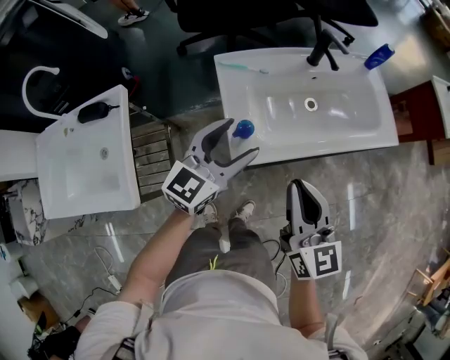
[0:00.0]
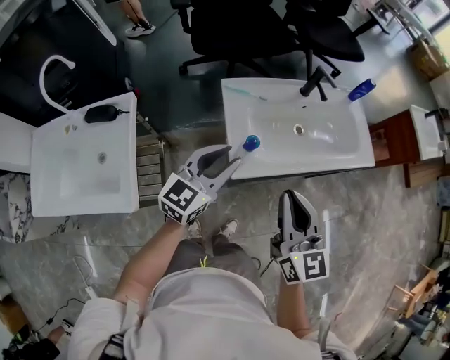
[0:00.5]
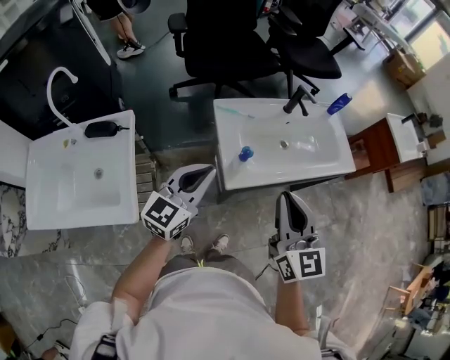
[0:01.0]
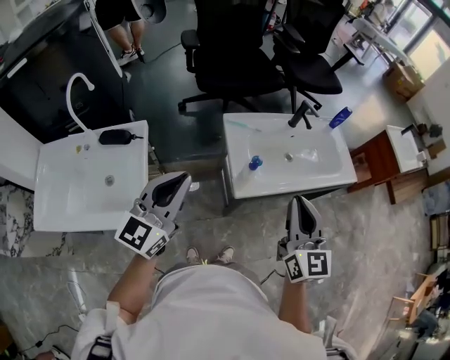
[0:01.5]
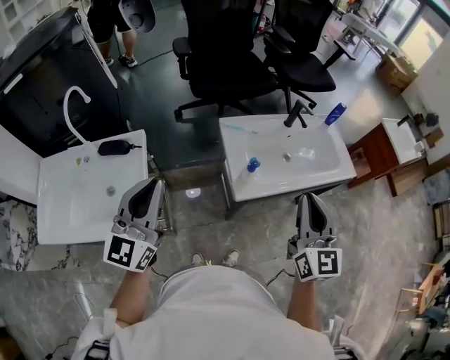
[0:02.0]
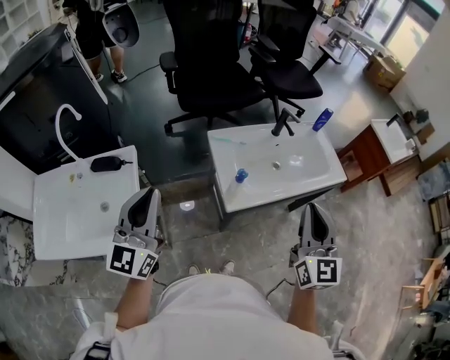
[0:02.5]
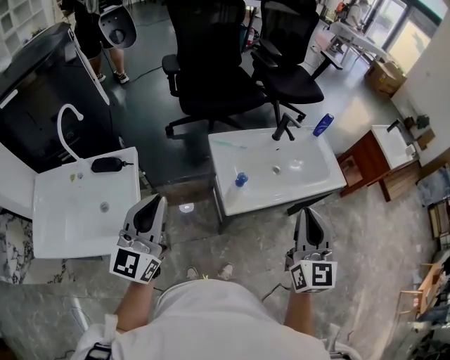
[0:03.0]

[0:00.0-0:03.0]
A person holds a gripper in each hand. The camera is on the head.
0:00.0 to 0:01.5: The right gripper shifts about 15 cm upward and backward. The left gripper goes roughly 30 cm upward, to the left and backward, and closes.
0:01.5 to 0:03.0: The right gripper travels to the right by some 5 cm.

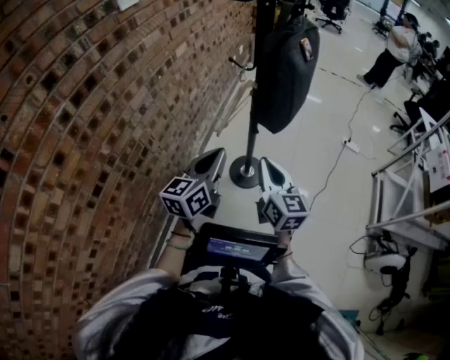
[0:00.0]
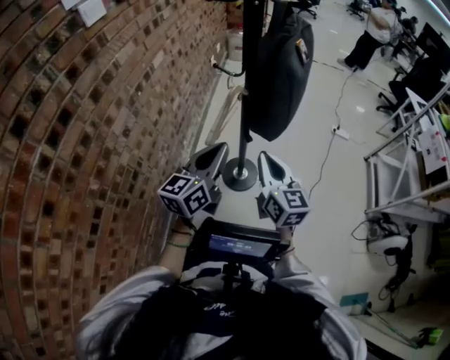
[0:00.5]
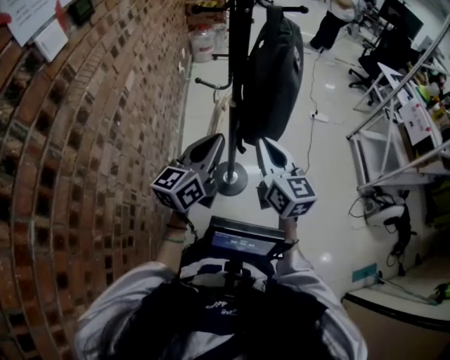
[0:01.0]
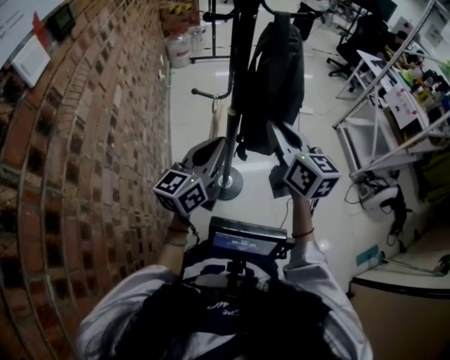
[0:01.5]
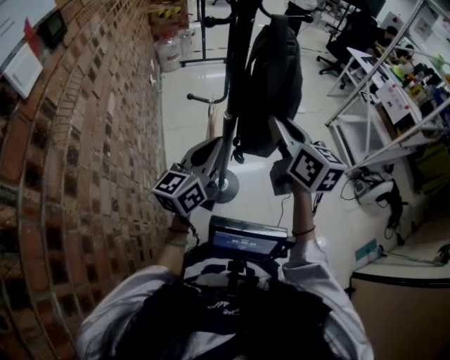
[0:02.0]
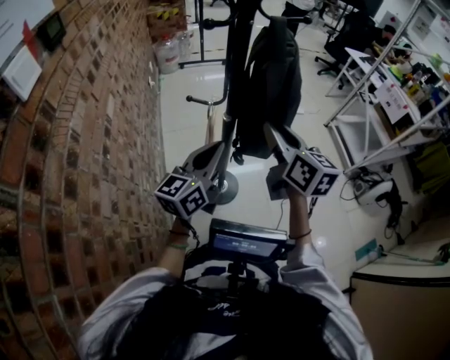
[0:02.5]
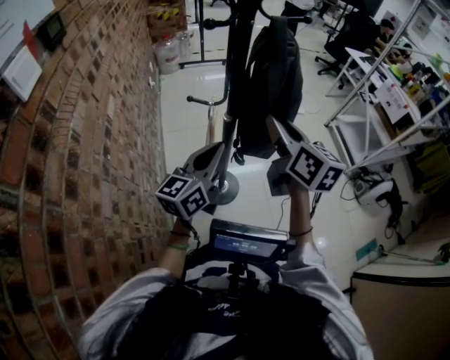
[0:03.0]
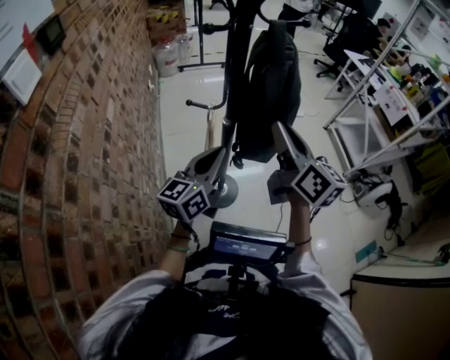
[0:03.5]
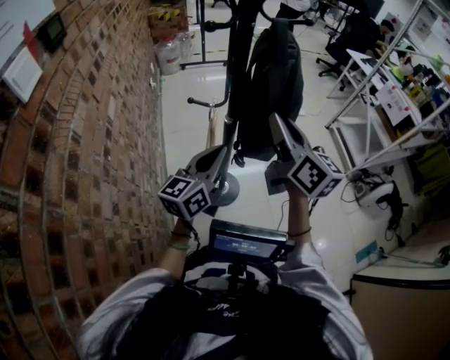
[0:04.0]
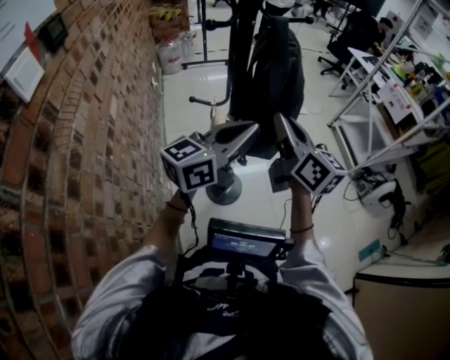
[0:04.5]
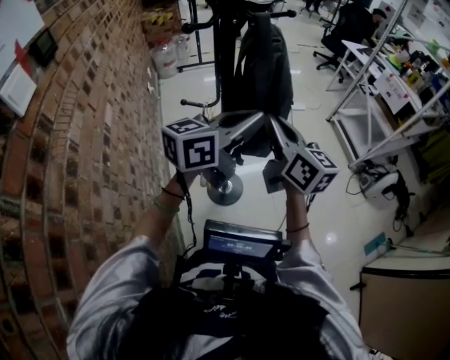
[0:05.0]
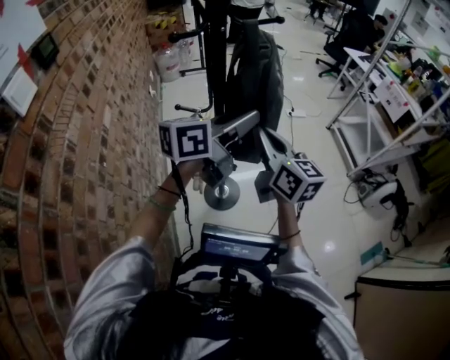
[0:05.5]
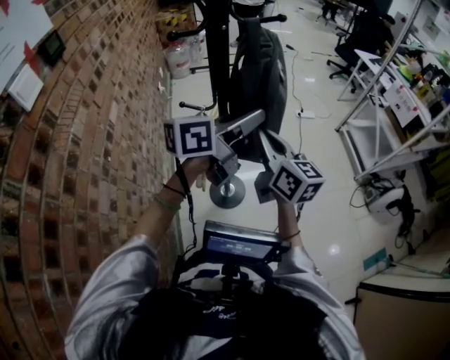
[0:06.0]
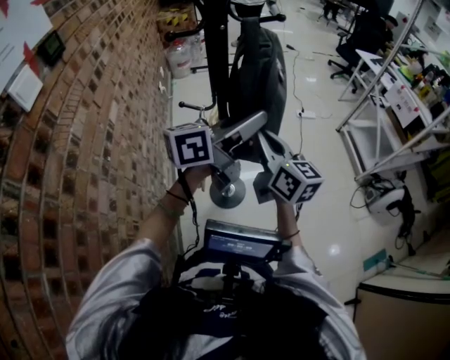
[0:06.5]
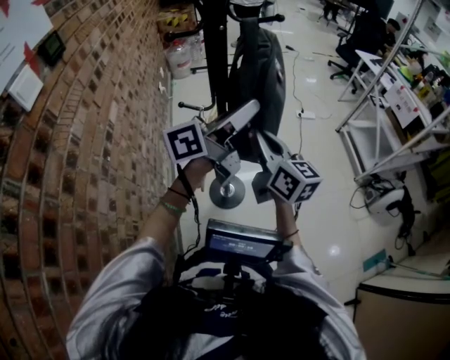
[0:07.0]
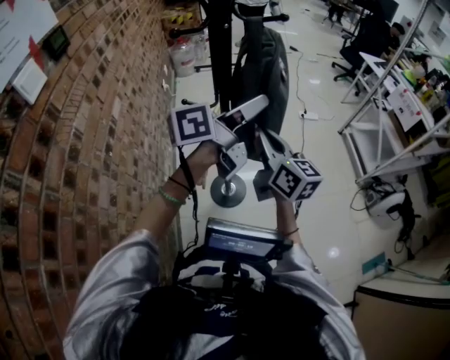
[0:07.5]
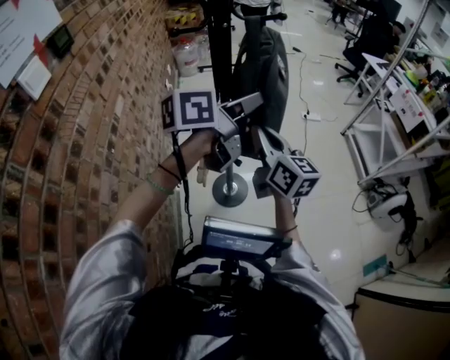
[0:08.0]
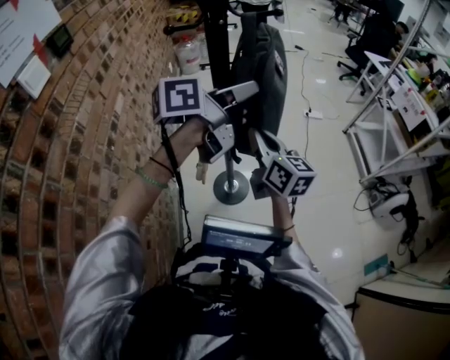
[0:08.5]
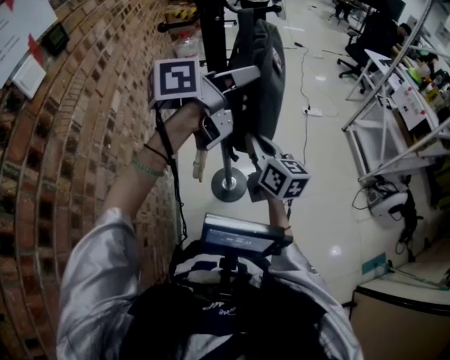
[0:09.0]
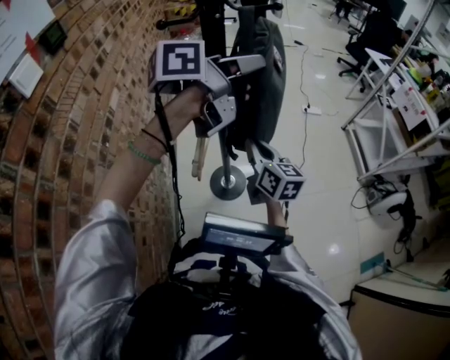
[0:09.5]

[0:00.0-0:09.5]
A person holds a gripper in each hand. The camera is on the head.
0:00.0 to 0:02.0: The right gripper ends up approximately 25 cm from where it was, and rotates roughly 30 degrees; the left gripper shifts by some 25 cm, and turns by about 40 degrees.
0:02.0 to 0:04.0: There are only small adjustments of the grippers.
0:04.0 to 0:05.5: The left gripper is displaced upward, to the right and forward by some 15 cm, and swivels some 30 degrees.
0:05.5 to 0:07.5: The left gripper turns by about 20 degrees.
0:07.5 to 0:09.5: The right gripper goes approximately 10 cm downward. The left gripper travels upward by some 5 cm.

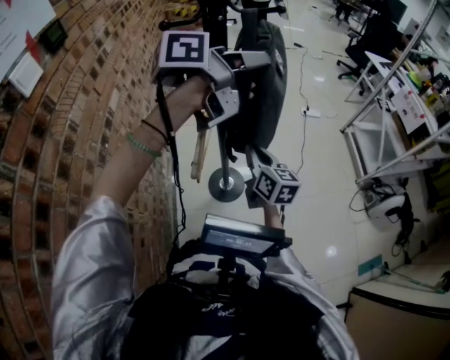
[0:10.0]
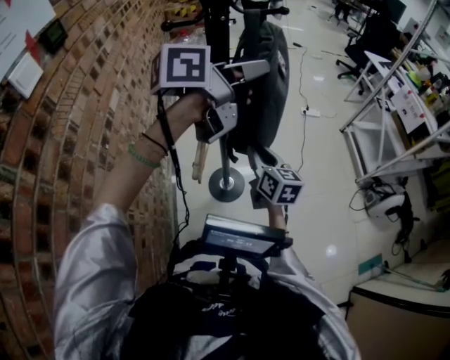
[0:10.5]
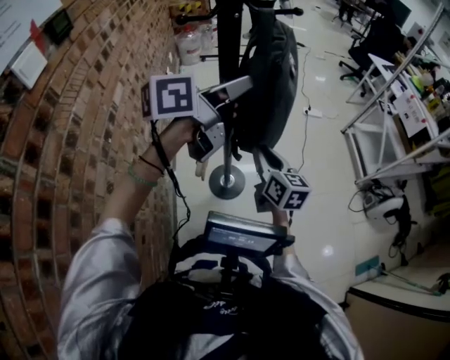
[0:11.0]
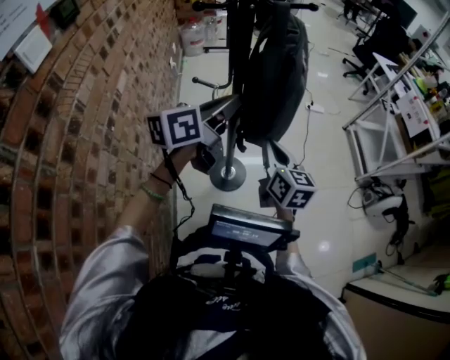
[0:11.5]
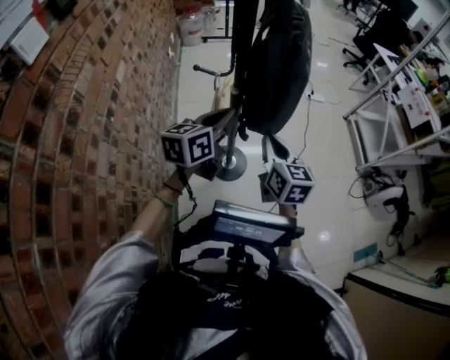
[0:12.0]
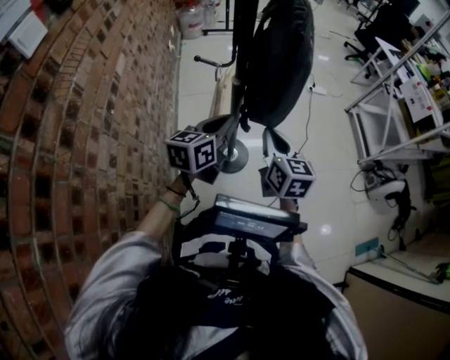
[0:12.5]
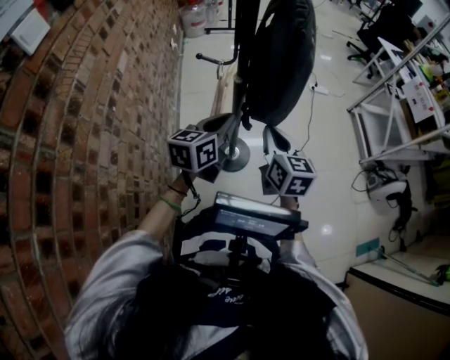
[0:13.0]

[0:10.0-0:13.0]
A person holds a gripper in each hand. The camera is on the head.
0:10.0 to 0:11.5: The left gripper goes some 15 cm downward, to the left and backward, and rotates some 20 degrees; the right gripper opens and closes again.
0:11.5 to 0:13.0: The left gripper moves downward, approximately 15 cm.

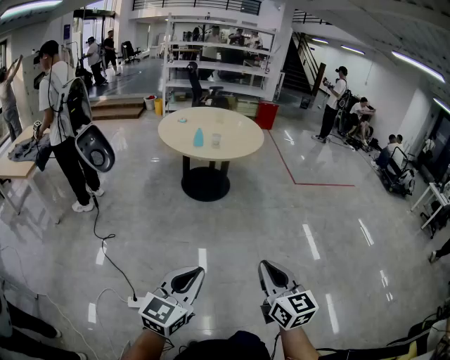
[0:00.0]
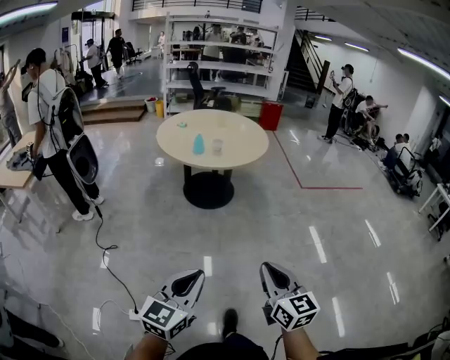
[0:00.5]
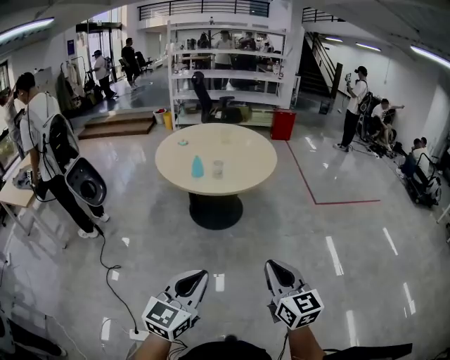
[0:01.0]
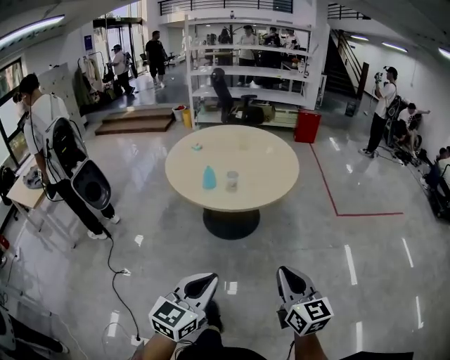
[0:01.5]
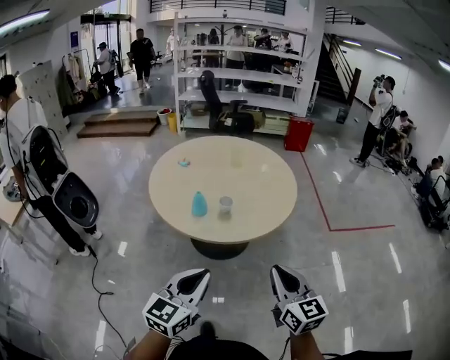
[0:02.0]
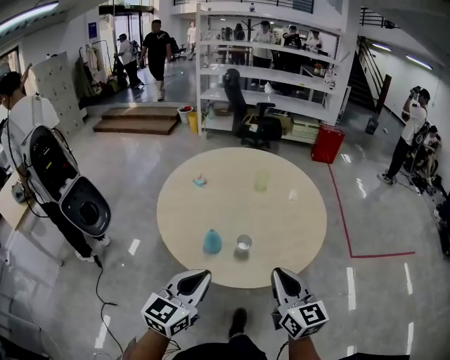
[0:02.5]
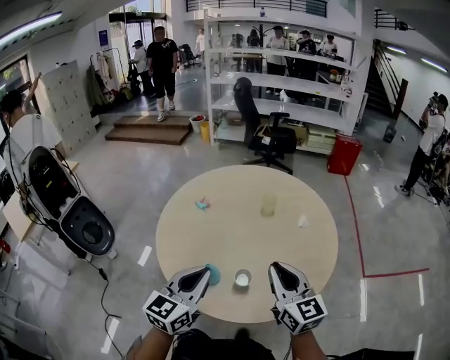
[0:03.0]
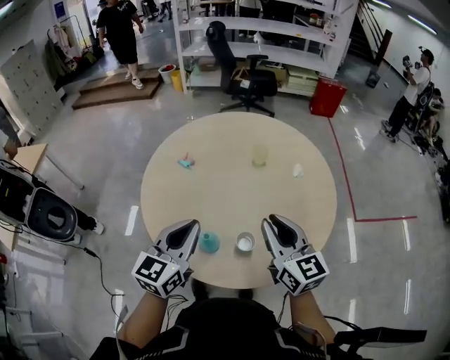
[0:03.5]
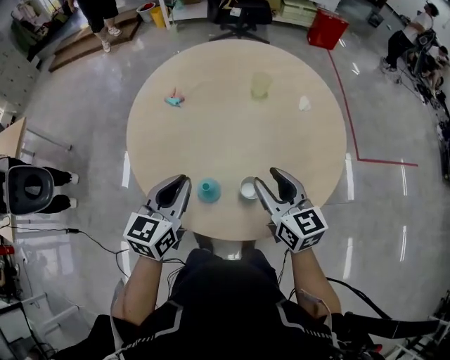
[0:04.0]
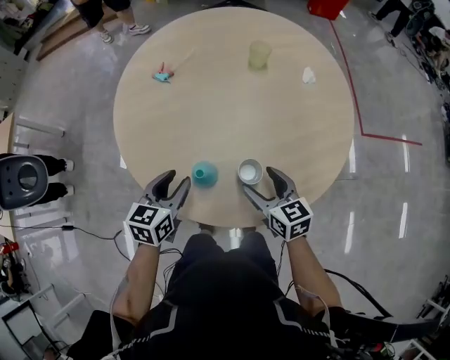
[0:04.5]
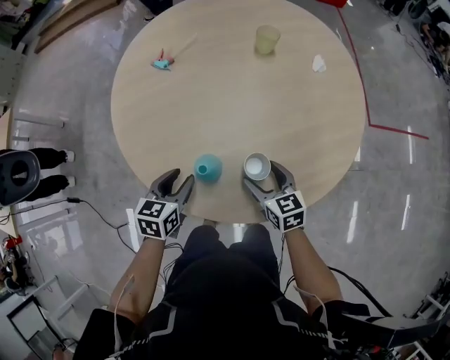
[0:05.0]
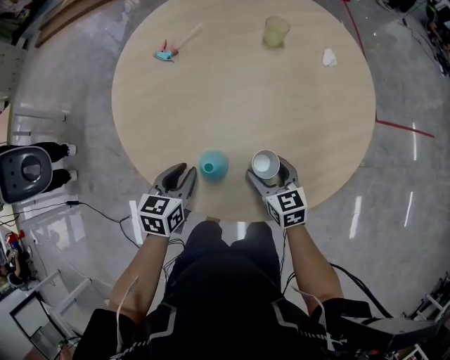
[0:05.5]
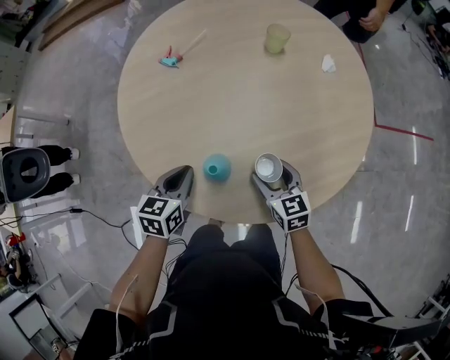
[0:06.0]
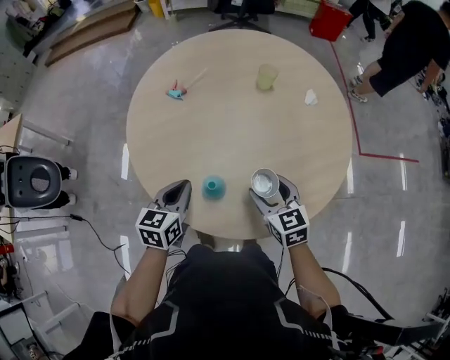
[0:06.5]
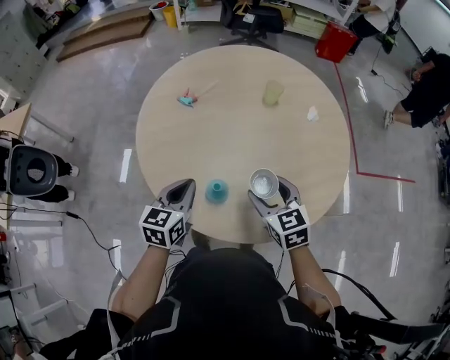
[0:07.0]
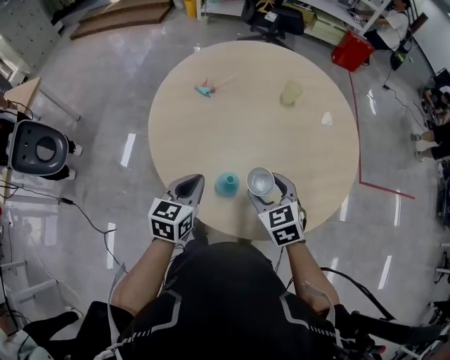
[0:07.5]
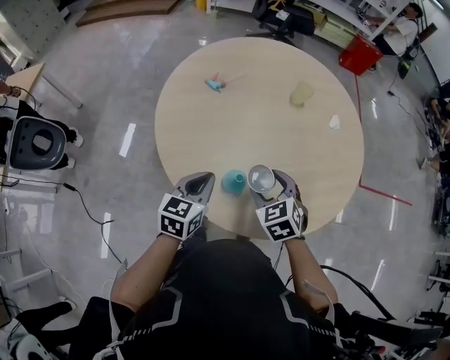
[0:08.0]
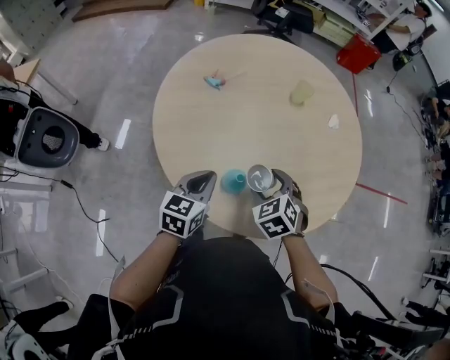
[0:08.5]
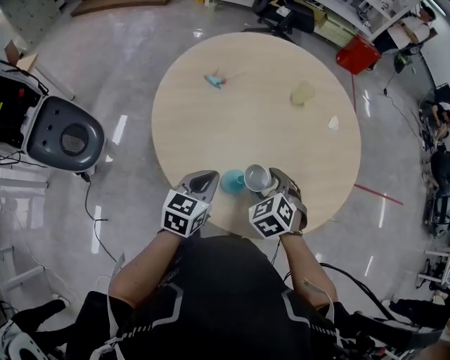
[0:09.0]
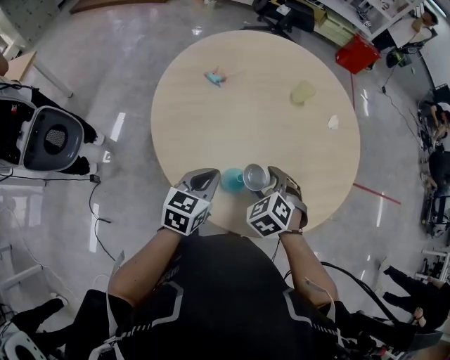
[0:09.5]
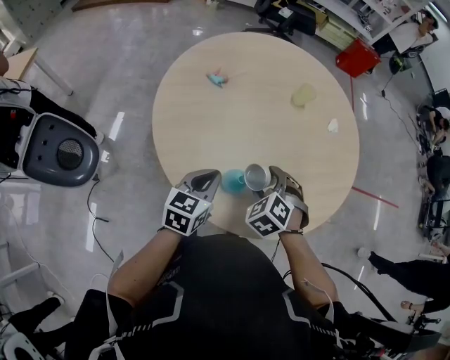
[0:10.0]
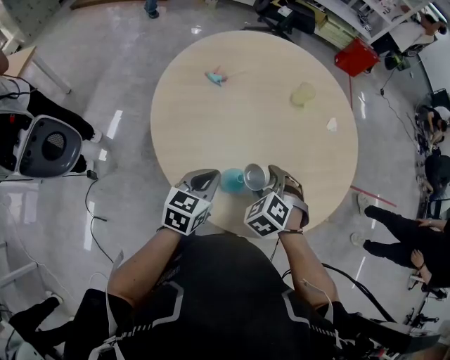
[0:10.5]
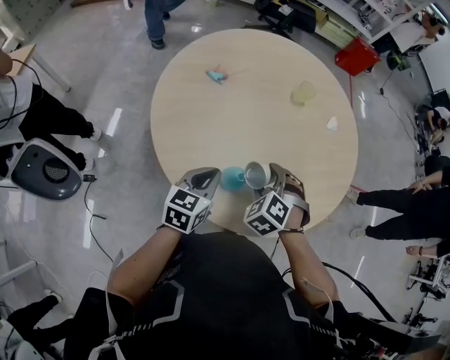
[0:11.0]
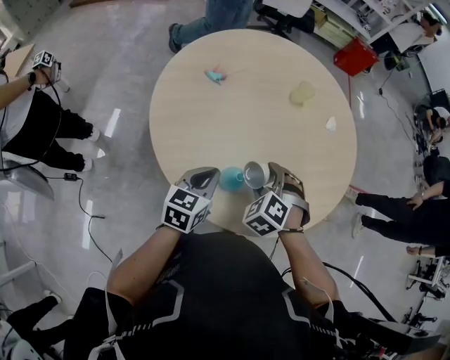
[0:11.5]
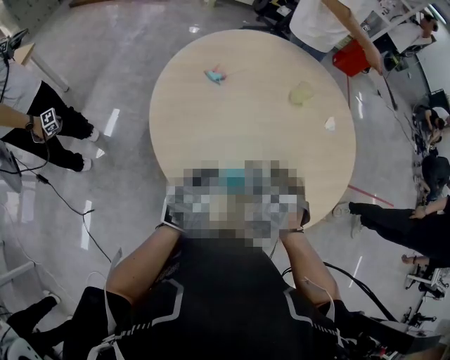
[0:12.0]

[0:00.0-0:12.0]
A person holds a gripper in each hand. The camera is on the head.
0:00.0 to 0:02.0: The two grippers travel together, forward, some 60 cm.
0:02.0 to 0:04.0: Both grippers are carried forward, roughly 50 cm. The right gripper opens up.
0:04.0 to 0:06.0: Both grippers travel together downward, roughly 20 cm. The right gripper opens its fingers. The left gripper turns by roughly 20 degrees, and opens, then closes once more.
0:06.0 to 0:08.0: The left gripper heads upward, covering some 10 cm. The right gripper shifts approximately 15 cm upward and to the left, and rotates about 30 degrees.
0:08.0 to 0:10.0: The right gripper rotates about 30 degrees.
0:10.0 to 0:12.0: The grippers stay close to where they were, moving slightly.
